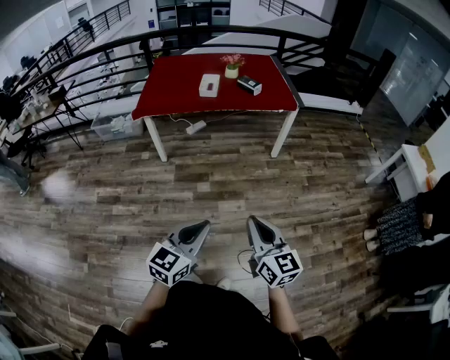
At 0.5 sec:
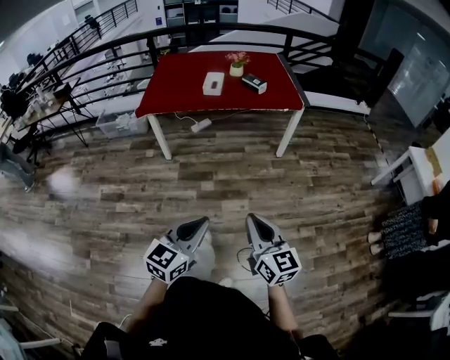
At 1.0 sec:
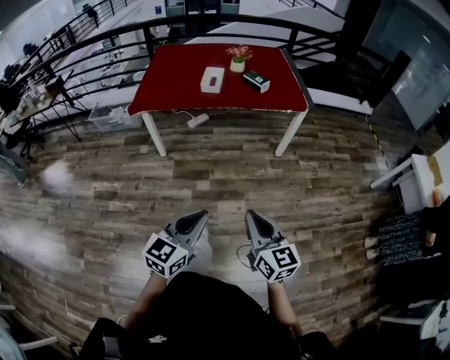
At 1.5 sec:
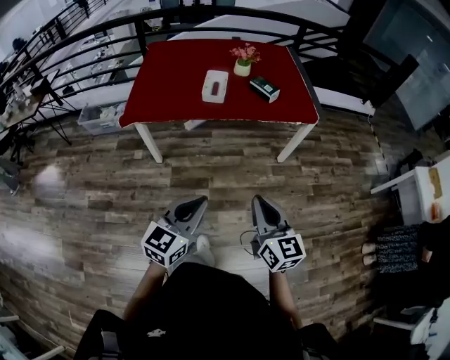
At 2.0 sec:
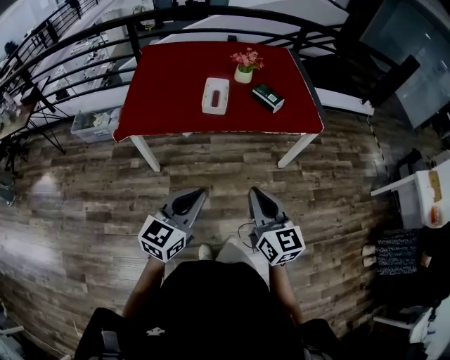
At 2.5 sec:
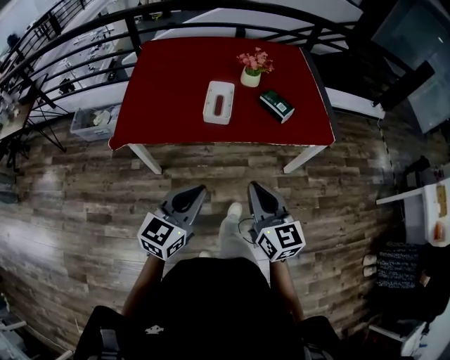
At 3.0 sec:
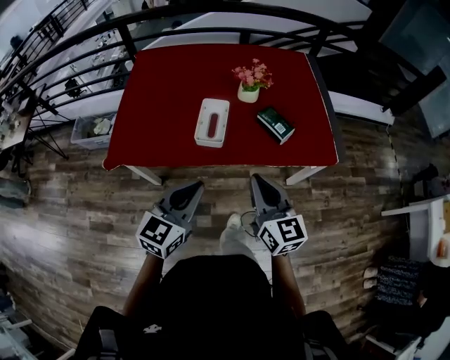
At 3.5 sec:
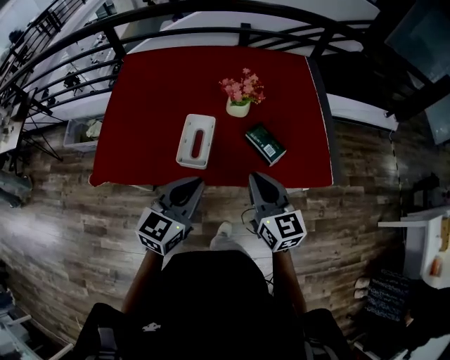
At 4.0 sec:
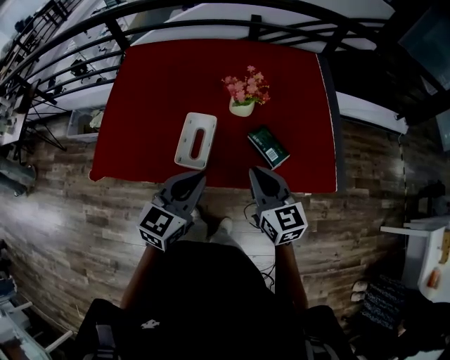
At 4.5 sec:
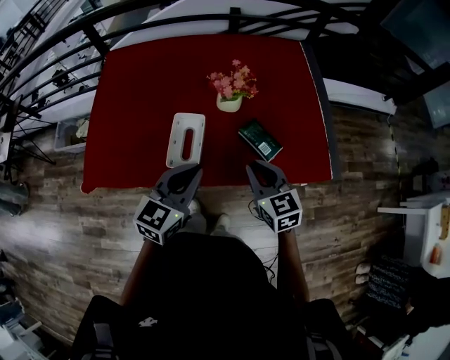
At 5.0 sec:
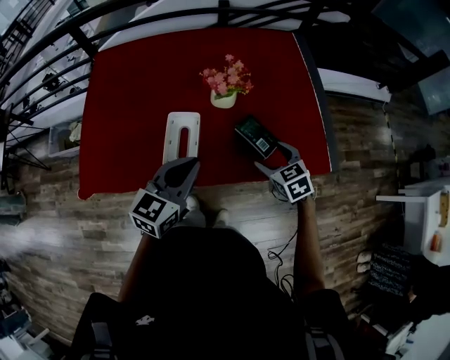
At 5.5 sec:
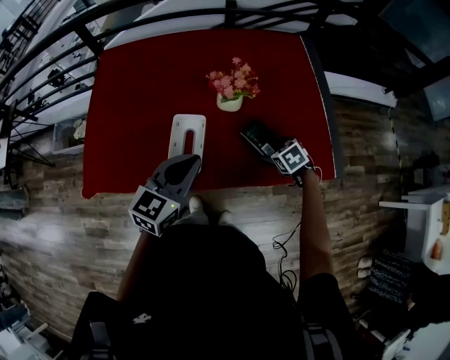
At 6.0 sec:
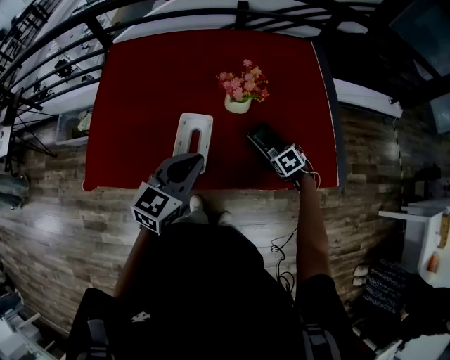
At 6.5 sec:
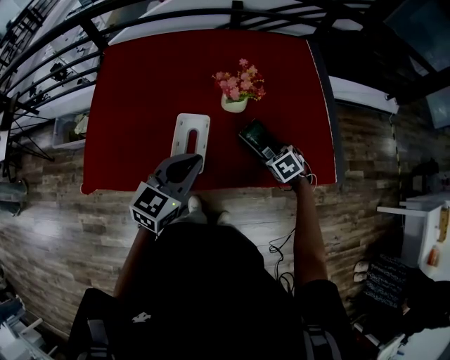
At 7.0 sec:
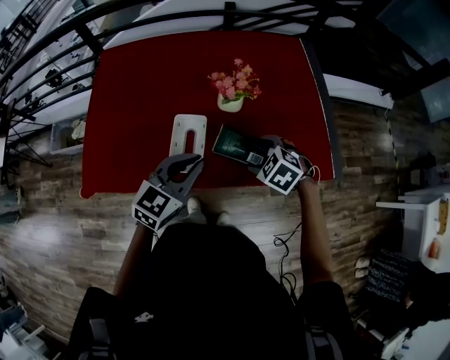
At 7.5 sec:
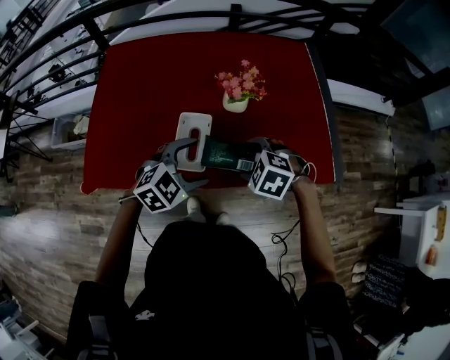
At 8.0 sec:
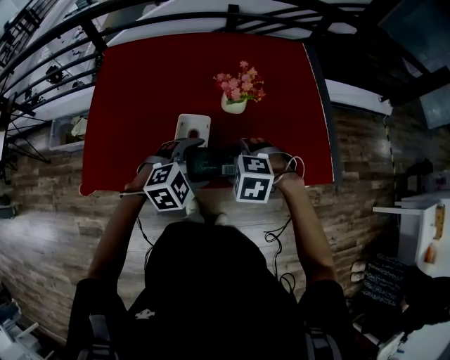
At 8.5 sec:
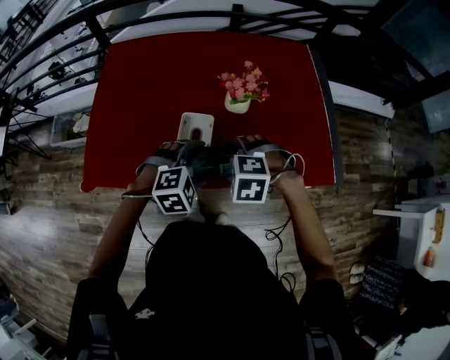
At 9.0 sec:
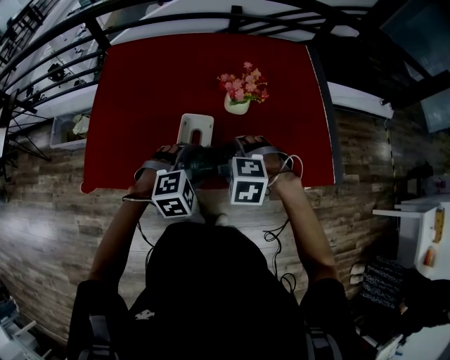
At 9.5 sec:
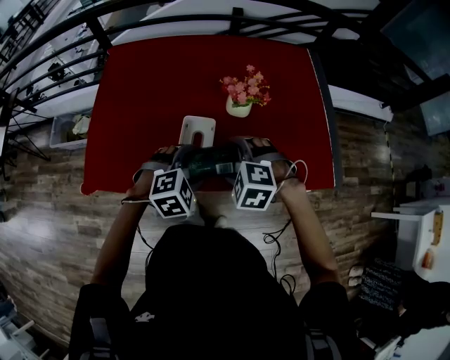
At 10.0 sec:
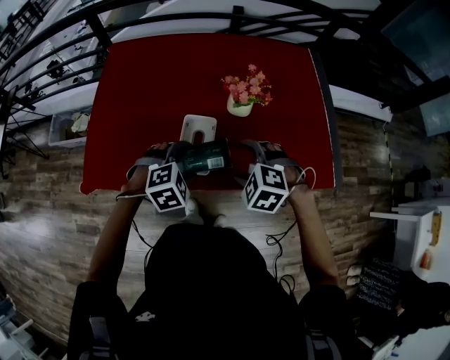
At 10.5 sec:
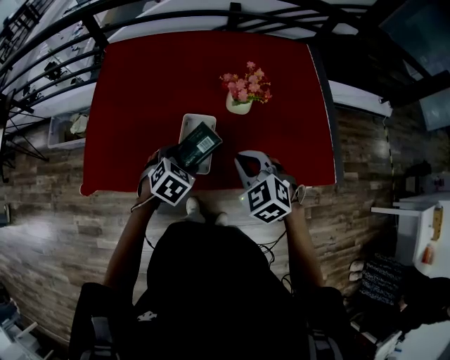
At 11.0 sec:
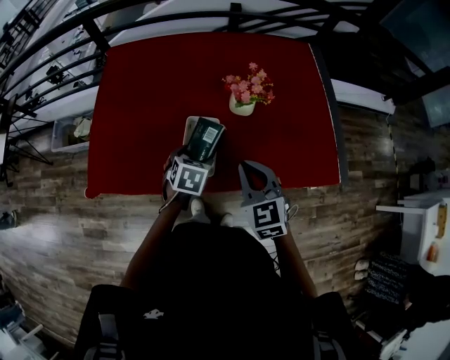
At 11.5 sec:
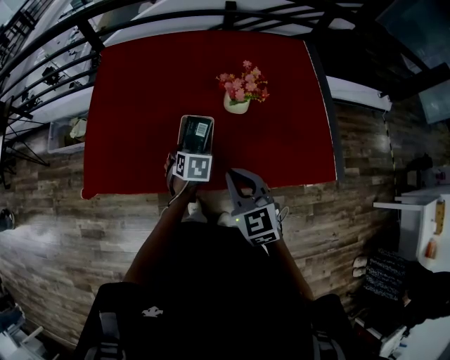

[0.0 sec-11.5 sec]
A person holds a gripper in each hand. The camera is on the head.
0.0 sec to 2.0 sec: Both grippers are carried forward, about 50 cm.
2.0 sec to 4.0 sec: The pair of grippers is taken forward, roughly 50 cm.
4.0 sec to 6.0 sec: The right gripper is displaced downward, forward and to the right by about 30 cm, points its fingers approximately 60 degrees further downward, and opens its fingers. Meanwhile the left gripper travels forward by about 5 cm.
6.0 sec to 7.5 sec: The right gripper travels upward, to the left and backward by approximately 25 cm, and rotates some 40 degrees. The left gripper shifts approximately 5 cm downward, turns by some 40 degrees, and opens.
7.5 sec to 9.5 sec: The right gripper is displaced to the left by roughly 5 cm.
9.5 sec to 11.5 sec: The left gripper moves downward and forward, some 15 cm, and twists some 60 degrees counterclockwise, seen from behind, while the right gripper moves approximately 5 cm, tips its fingers upward by roughly 40 degrees, and closes its fingers.

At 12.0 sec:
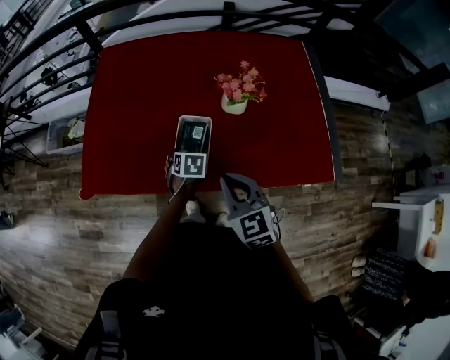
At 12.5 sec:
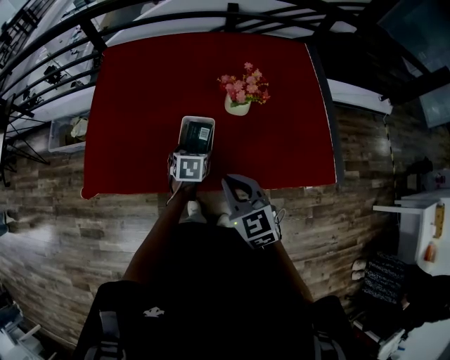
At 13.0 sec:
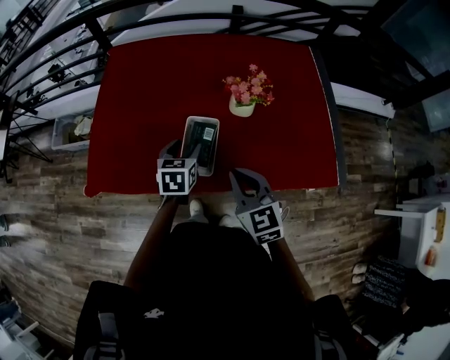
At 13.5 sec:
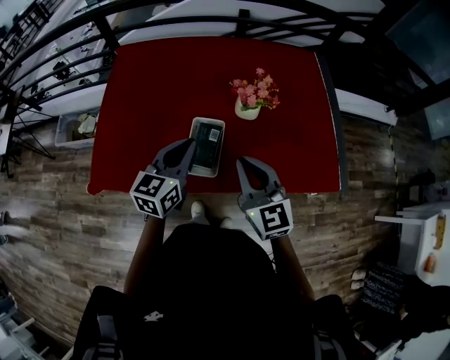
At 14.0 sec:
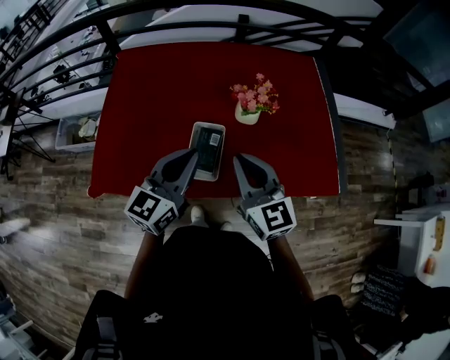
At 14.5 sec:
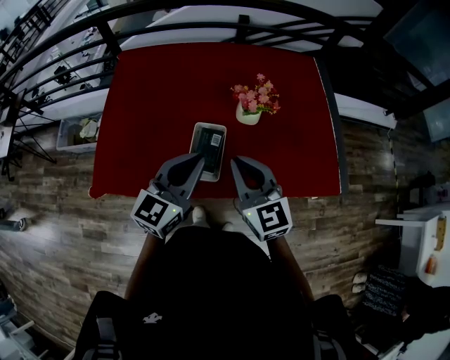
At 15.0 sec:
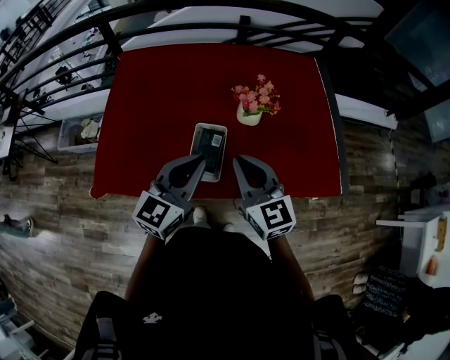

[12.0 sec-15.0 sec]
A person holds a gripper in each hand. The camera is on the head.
12.0 sec to 13.5 sec: The right gripper heads upward, covering some 5 cm. Meanwhile the left gripper travels upward by approximately 25 cm, points its fingers roughly 50 degrees further upward, and closes its fingers.
13.5 sec to 15.0 sec: The left gripper changes place by some 5 cm.

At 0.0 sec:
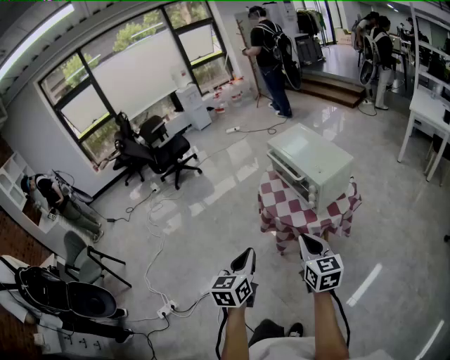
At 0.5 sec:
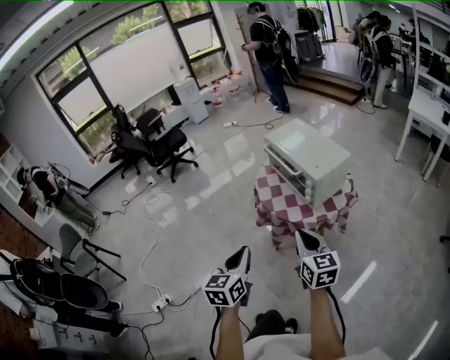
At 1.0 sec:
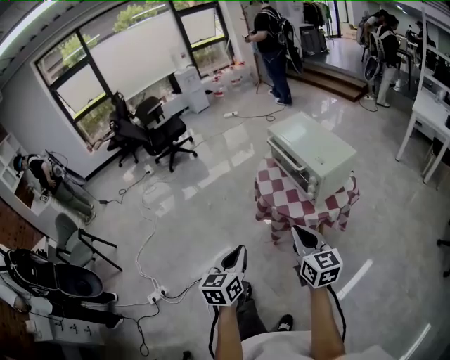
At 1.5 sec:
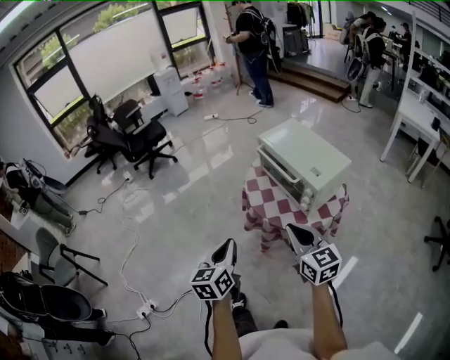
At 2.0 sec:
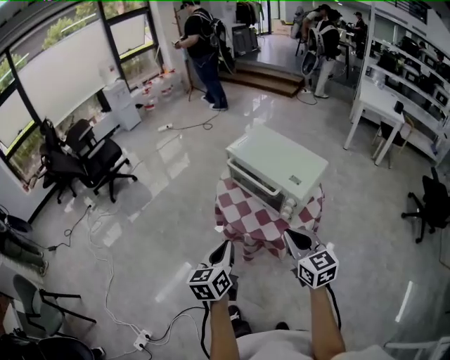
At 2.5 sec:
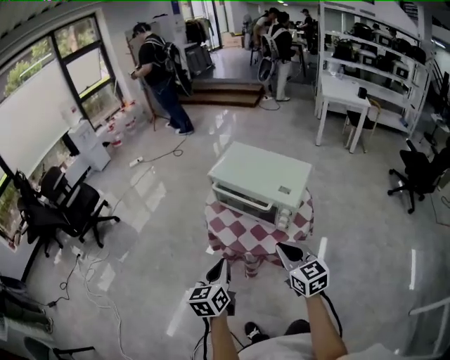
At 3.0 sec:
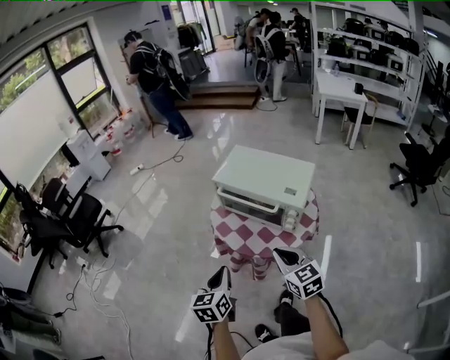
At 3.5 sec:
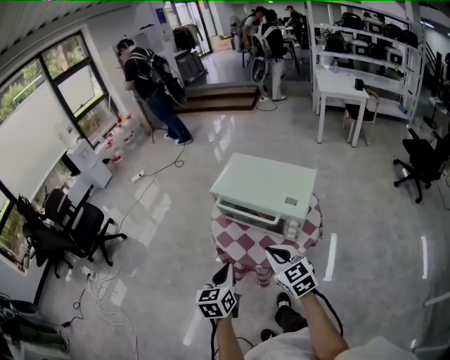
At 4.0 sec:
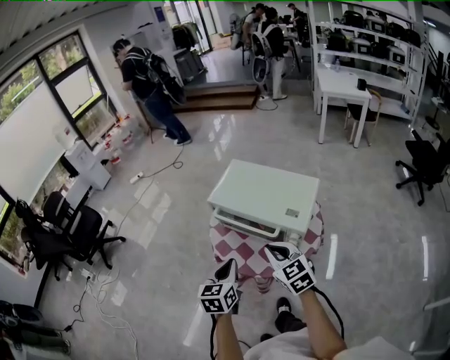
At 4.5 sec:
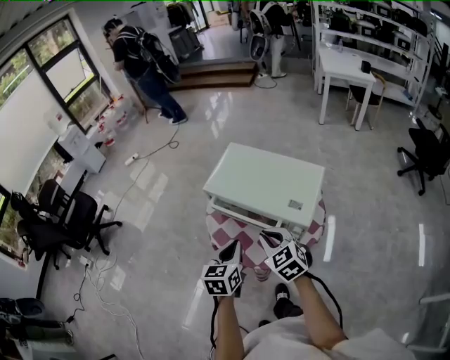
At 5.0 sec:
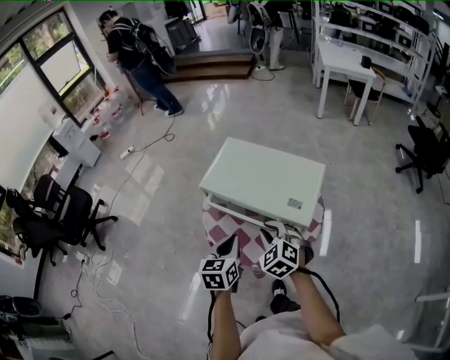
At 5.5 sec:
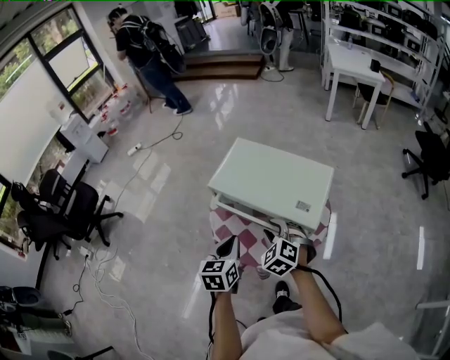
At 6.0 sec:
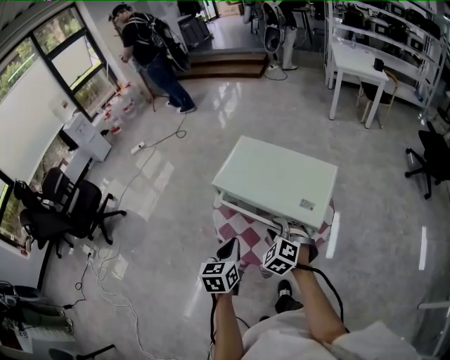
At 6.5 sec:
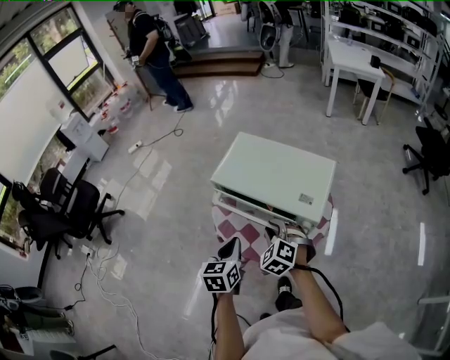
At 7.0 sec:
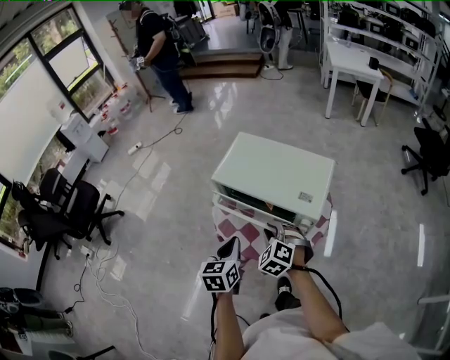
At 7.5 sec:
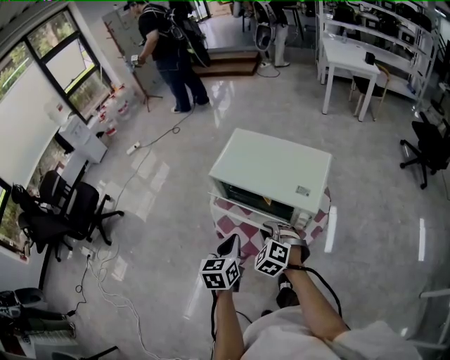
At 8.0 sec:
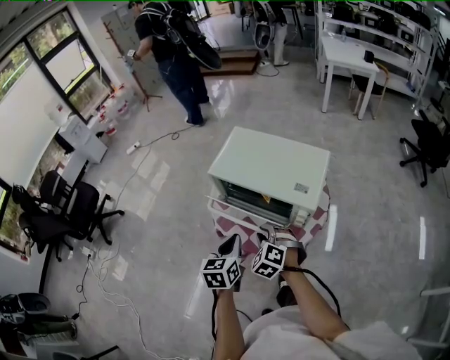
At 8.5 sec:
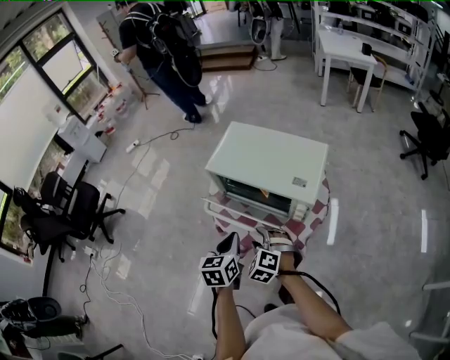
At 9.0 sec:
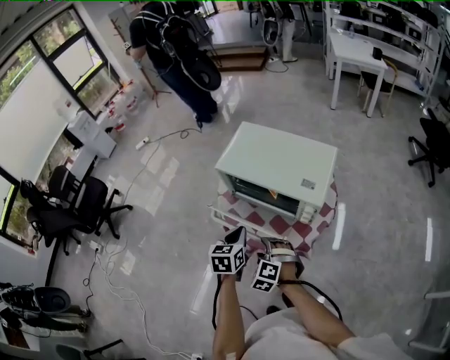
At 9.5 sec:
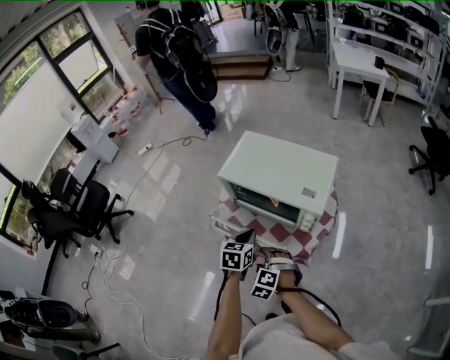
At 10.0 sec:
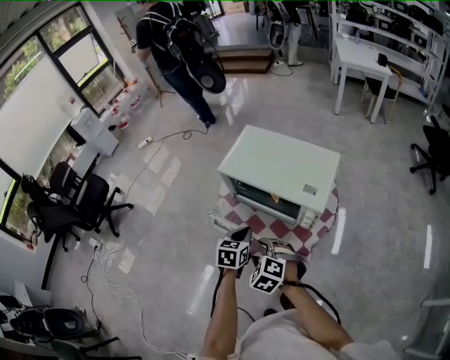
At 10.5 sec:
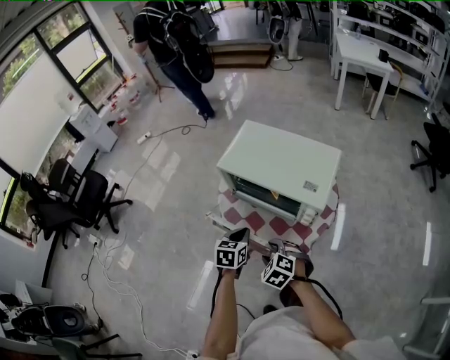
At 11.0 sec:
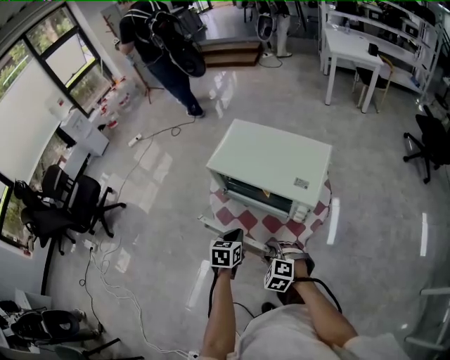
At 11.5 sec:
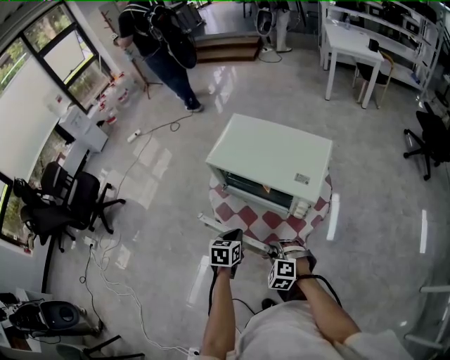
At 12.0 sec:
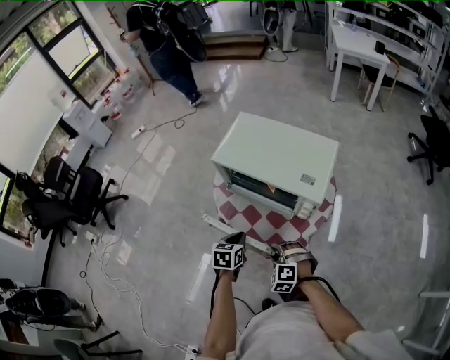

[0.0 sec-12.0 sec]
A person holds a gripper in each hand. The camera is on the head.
0.0 sec to 2.0 sec: Both grippers travel together forward, approximately 15 cm.
2.0 sec to 4.0 sec: The left gripper shifts approximately 15 cm forward, and changes its angle by roughly 20 degrees. The right gripper goes roughly 15 cm forward and to the left.
4.0 sec to 6.0 sec: The right gripper goes roughly 15 cm downward and forward, rotates about 40 degrees, and opens up; the left gripper travels forward by approximately 5 cm.
6.0 sec to 8.0 sec: The right gripper shifts roughly 5 cm backward.
8.0 sec to 10.0 sec: The left gripper is displaced downward by approximately 5 cm. Meanwhile the right gripper heads backward, covering approximately 5 cm, and opens its fingers.
10.0 sec to 12.0 sec: The left gripper shifts roughly 5 cm downward, while the right gripper travels downward and to the right by about 15 cm.
